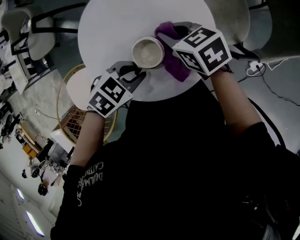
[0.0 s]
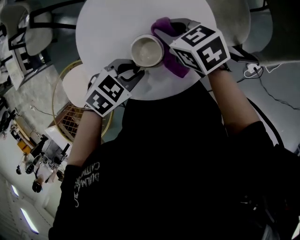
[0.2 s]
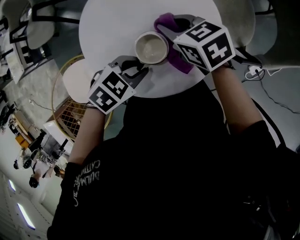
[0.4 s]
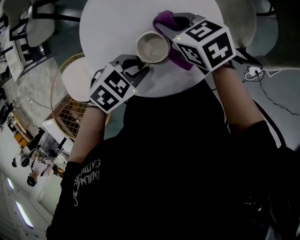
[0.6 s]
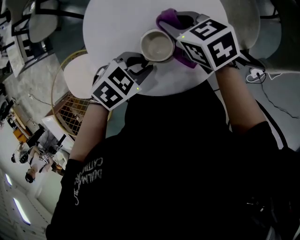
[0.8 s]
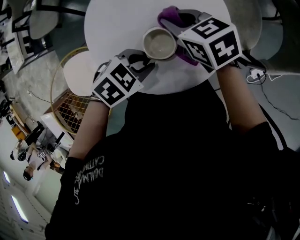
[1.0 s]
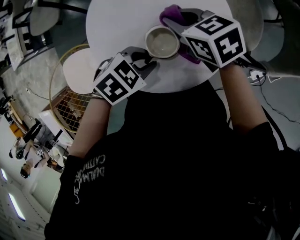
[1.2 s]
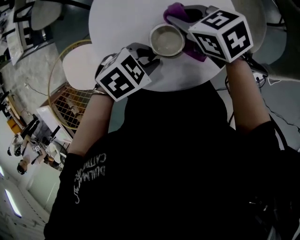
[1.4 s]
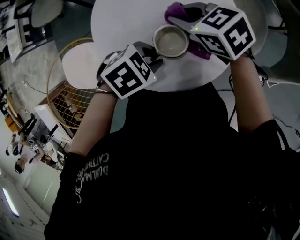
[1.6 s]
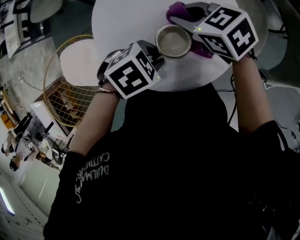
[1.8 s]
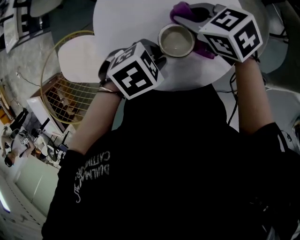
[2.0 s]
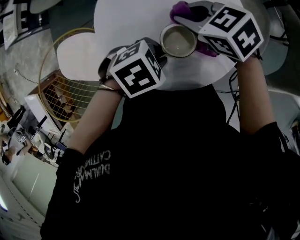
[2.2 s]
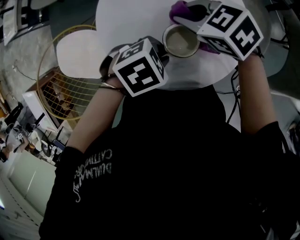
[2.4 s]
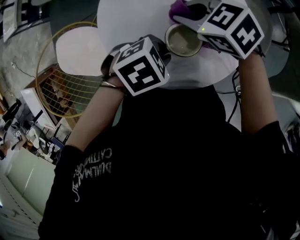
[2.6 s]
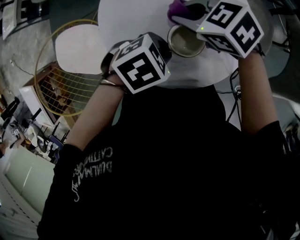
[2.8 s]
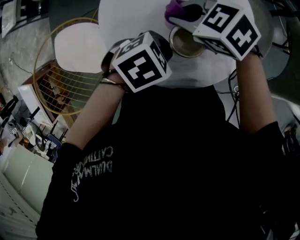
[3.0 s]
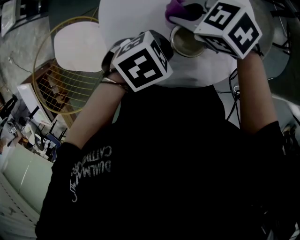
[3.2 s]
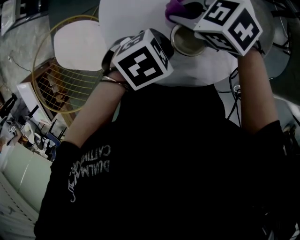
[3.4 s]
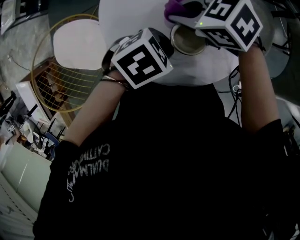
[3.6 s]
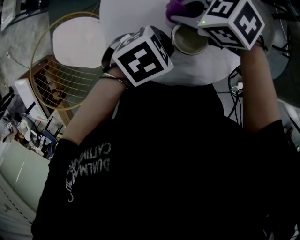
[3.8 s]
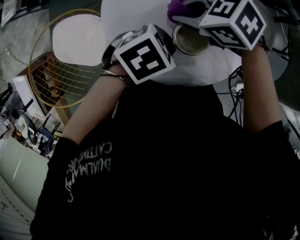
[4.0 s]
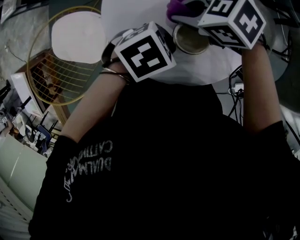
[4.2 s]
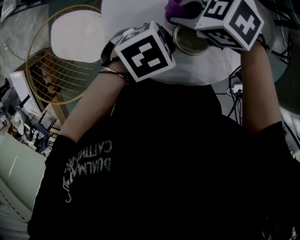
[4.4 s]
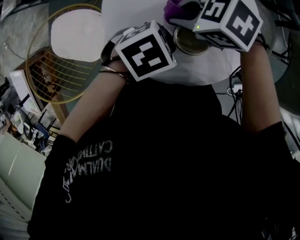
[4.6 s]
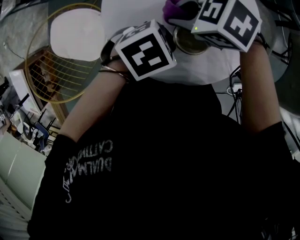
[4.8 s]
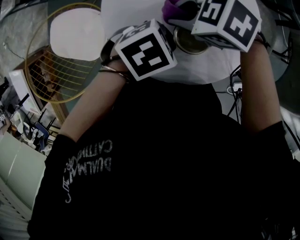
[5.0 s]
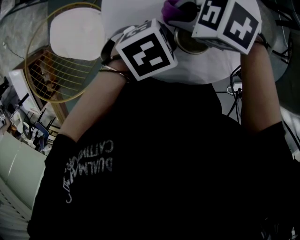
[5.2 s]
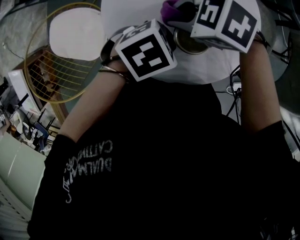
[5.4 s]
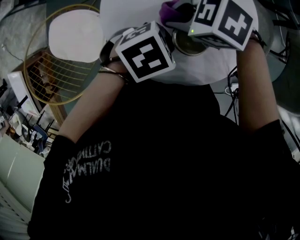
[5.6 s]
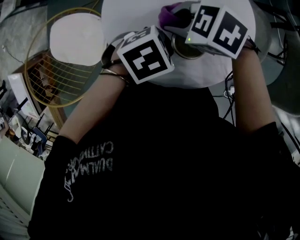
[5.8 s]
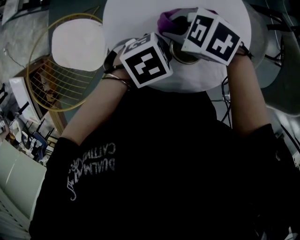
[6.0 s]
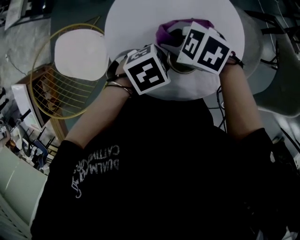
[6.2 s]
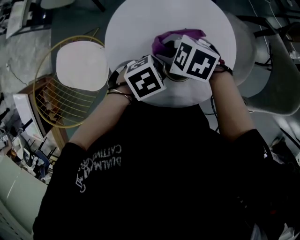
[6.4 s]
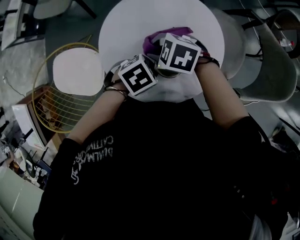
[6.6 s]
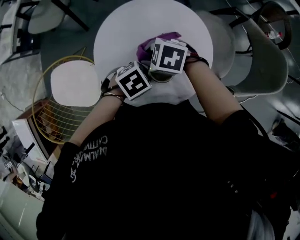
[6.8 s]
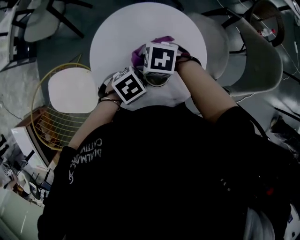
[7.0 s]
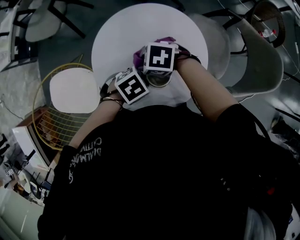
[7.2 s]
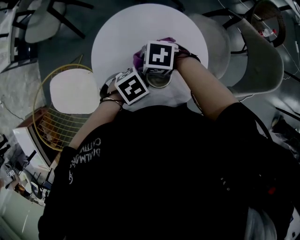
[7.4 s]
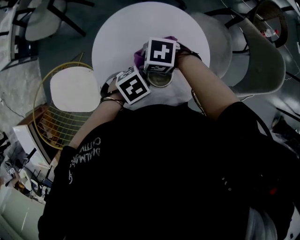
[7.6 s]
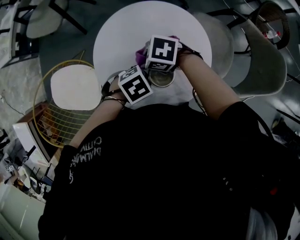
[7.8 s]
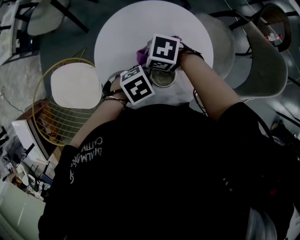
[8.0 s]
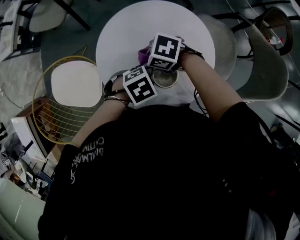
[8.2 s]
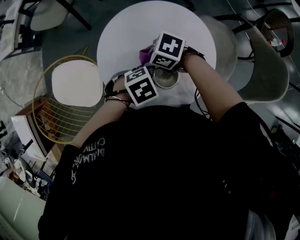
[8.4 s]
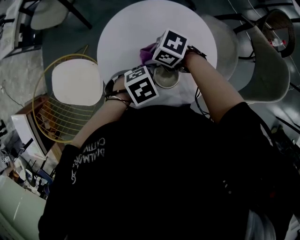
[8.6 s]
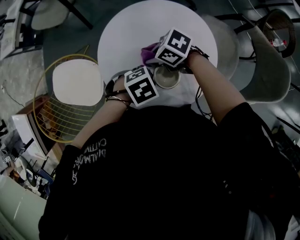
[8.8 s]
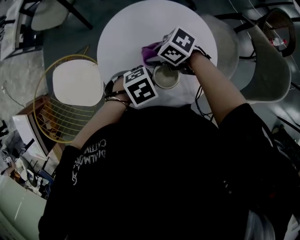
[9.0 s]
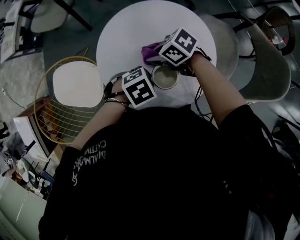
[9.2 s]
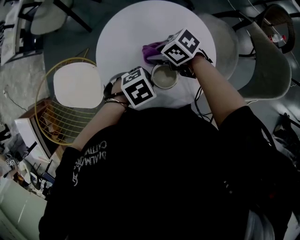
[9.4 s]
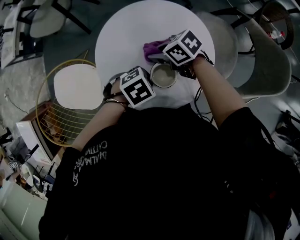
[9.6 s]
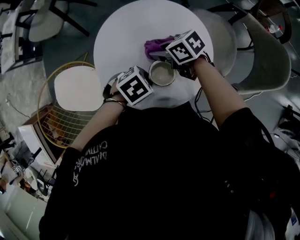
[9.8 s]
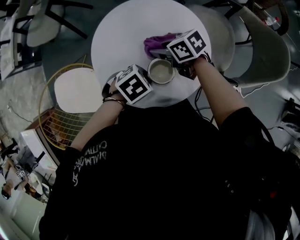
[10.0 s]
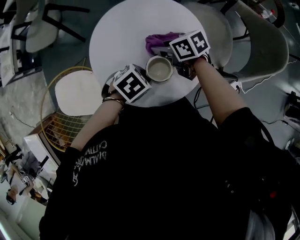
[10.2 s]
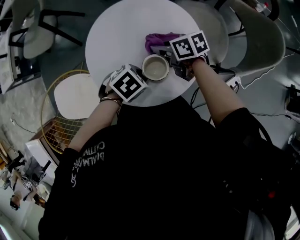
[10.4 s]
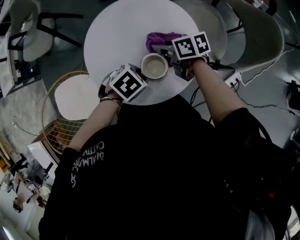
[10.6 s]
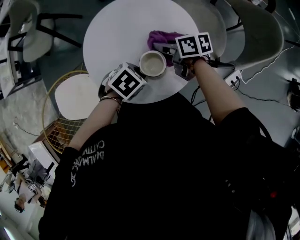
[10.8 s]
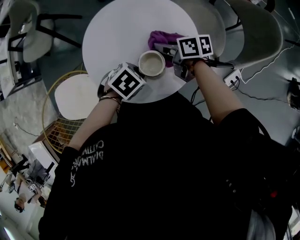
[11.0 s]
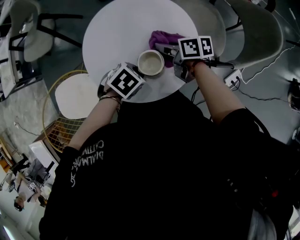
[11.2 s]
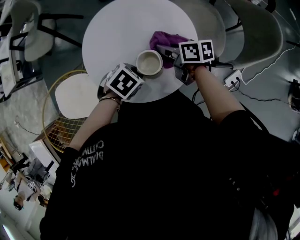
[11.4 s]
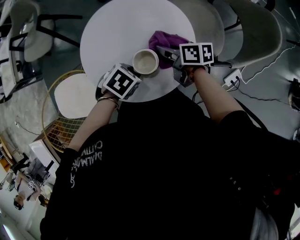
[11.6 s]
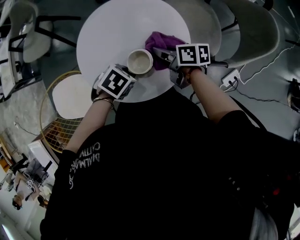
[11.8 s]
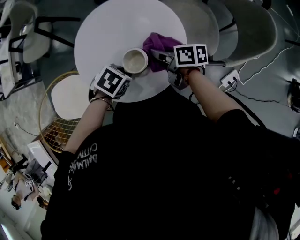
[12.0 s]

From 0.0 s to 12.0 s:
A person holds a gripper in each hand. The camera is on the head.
From 0.0 s to 1.6 s: The right gripper shifts by approximately 5 cm, and rotates some 20 degrees.
From 1.6 s to 3.0 s: The right gripper changes place by some 5 cm, and turns by some 20 degrees.
From 3.0 s to 4.4 s: The grippers make only small movements.
From 4.4 s to 7.6 s: There are only small adjustments of the grippers.
From 7.6 s to 9.0 s: The right gripper turns by roughly 20 degrees.
From 9.0 s to 10.4 s: The right gripper ends up roughly 10 cm from where it was, and rotates about 50 degrees.
From 10.4 s to 12.0 s: The right gripper moves some 10 cm, and changes its angle by roughly 20 degrees.

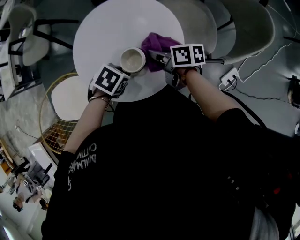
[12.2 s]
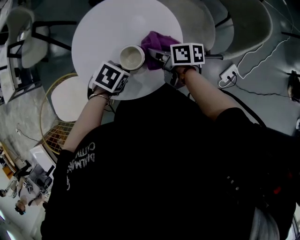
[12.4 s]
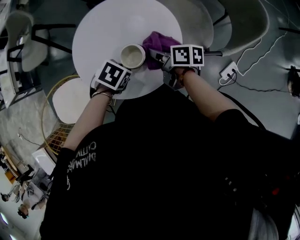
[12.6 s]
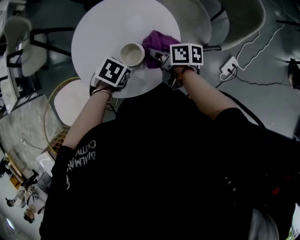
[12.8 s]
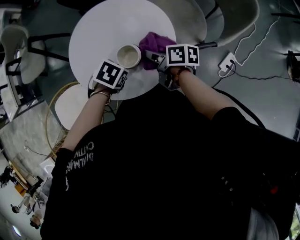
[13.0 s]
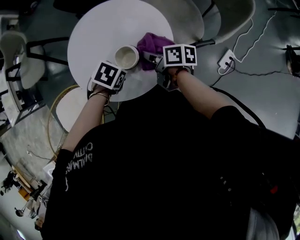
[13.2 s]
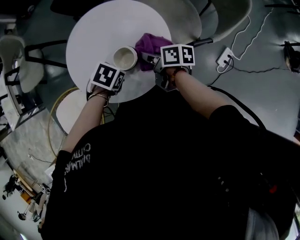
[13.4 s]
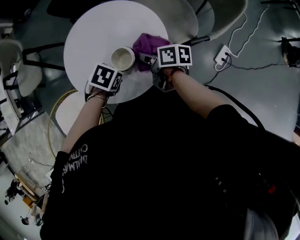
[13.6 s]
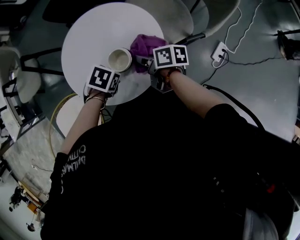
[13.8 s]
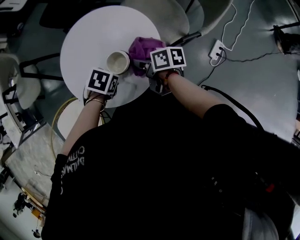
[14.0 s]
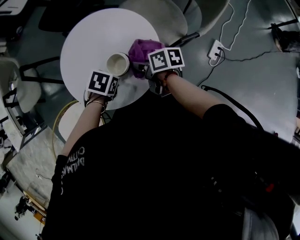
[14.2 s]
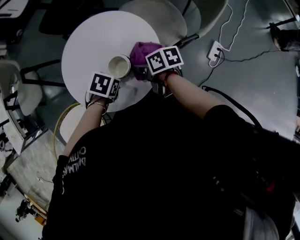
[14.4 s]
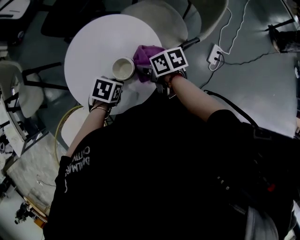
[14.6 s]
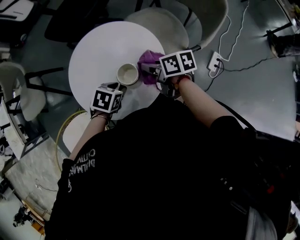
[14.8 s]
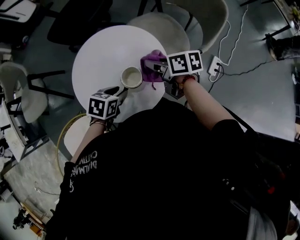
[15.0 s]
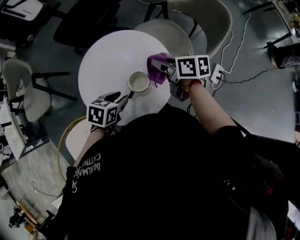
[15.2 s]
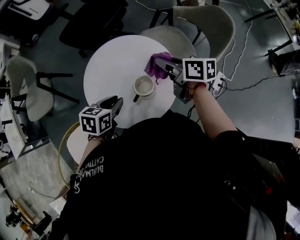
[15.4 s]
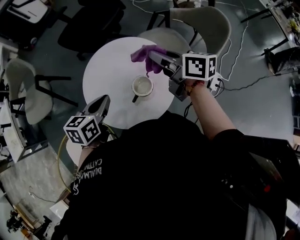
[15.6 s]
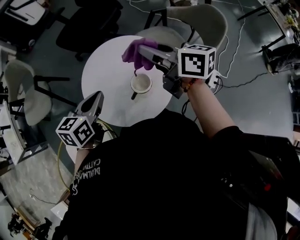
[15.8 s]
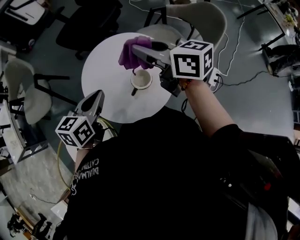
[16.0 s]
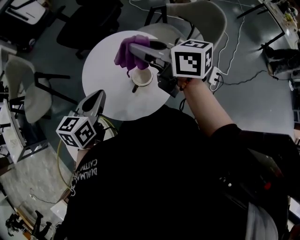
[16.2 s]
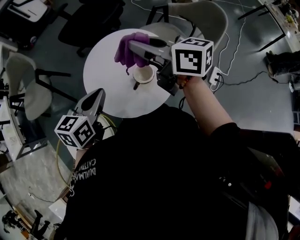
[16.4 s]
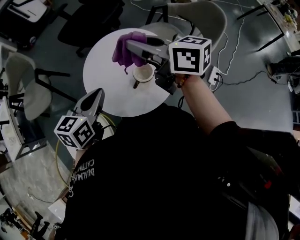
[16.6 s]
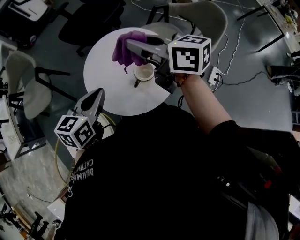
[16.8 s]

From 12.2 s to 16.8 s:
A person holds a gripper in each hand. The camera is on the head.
From 12.2 s to 13.8 s: The right gripper changes place by approximately 5 cm.
From 13.8 s to 15.2 s: The left gripper is displaced upward by about 5 cm, turns by approximately 20 degrees, and opens up; the right gripper is displaced upward by about 10 cm.
From 15.2 s to 16.8 s: Both grippers travel together upward and to the left, some 20 cm. The right gripper changes its angle by about 30 degrees. The left gripper turns by approximately 30 degrees, and closes.

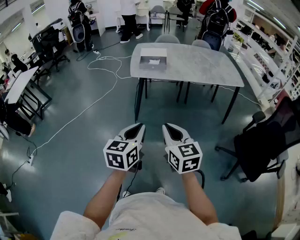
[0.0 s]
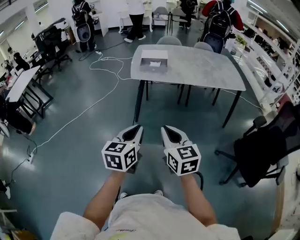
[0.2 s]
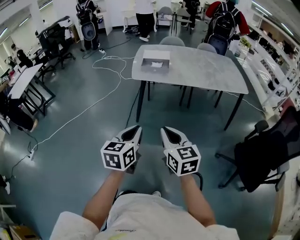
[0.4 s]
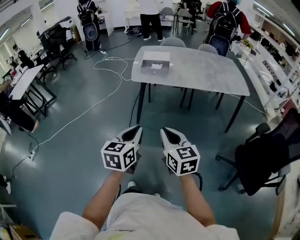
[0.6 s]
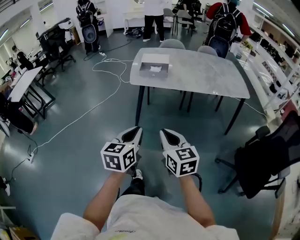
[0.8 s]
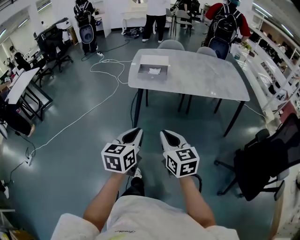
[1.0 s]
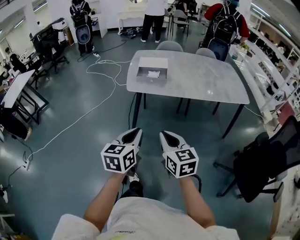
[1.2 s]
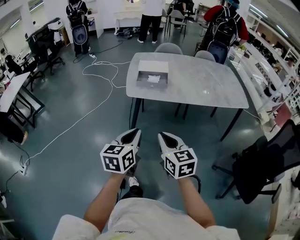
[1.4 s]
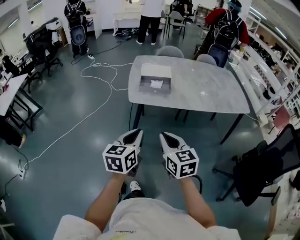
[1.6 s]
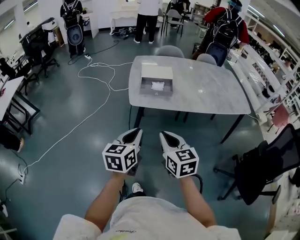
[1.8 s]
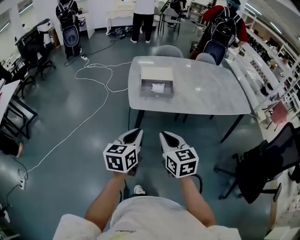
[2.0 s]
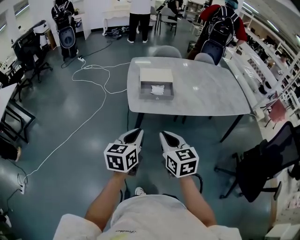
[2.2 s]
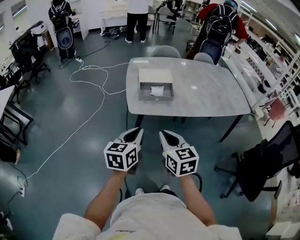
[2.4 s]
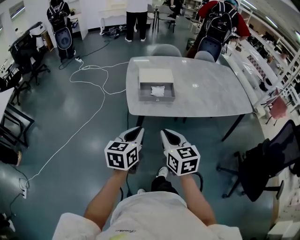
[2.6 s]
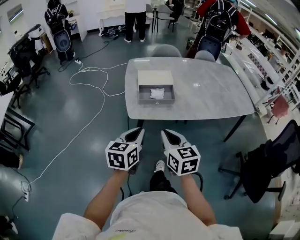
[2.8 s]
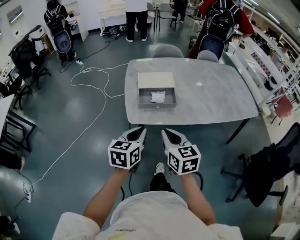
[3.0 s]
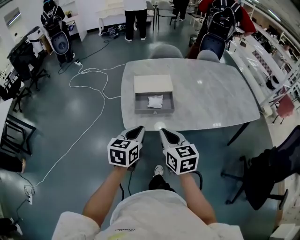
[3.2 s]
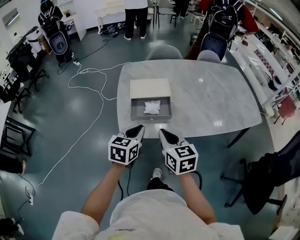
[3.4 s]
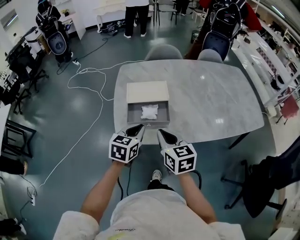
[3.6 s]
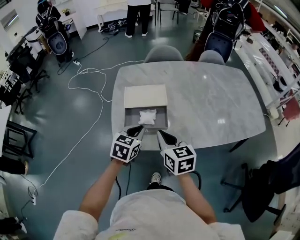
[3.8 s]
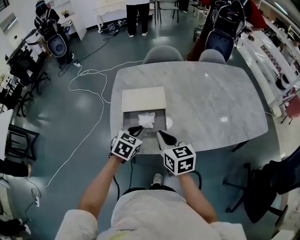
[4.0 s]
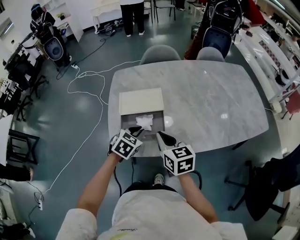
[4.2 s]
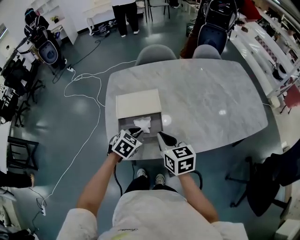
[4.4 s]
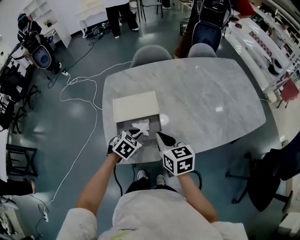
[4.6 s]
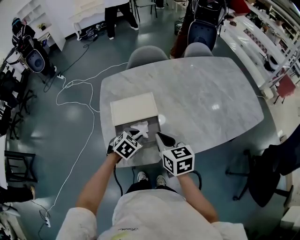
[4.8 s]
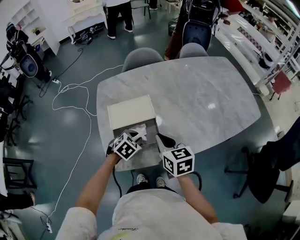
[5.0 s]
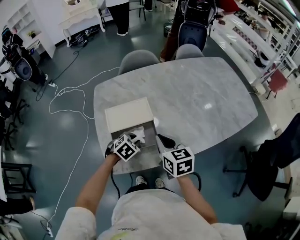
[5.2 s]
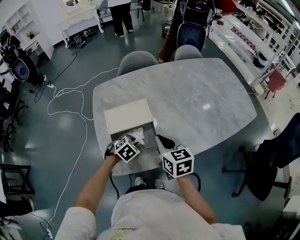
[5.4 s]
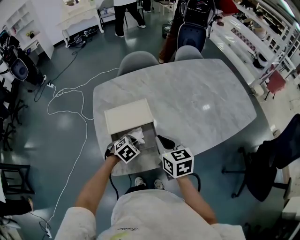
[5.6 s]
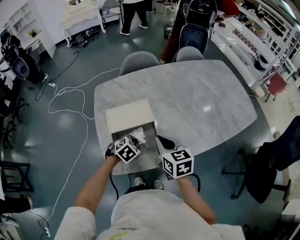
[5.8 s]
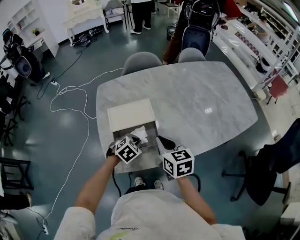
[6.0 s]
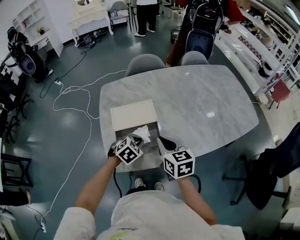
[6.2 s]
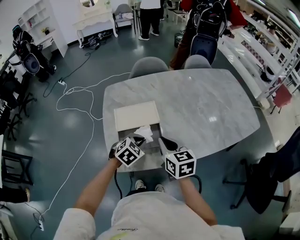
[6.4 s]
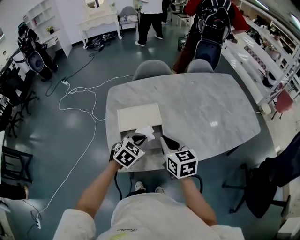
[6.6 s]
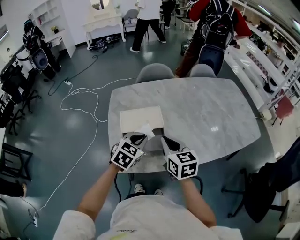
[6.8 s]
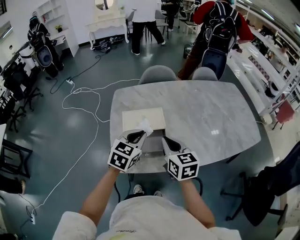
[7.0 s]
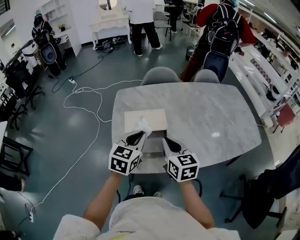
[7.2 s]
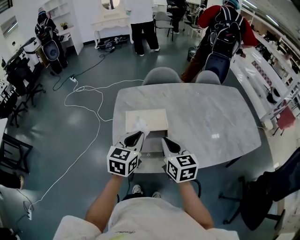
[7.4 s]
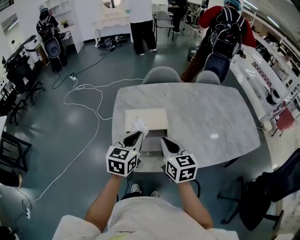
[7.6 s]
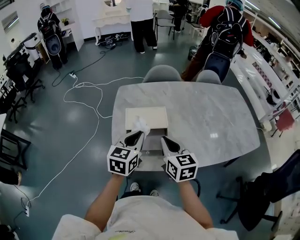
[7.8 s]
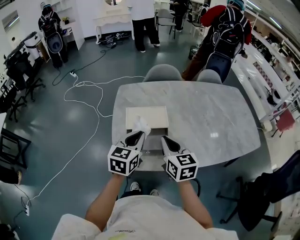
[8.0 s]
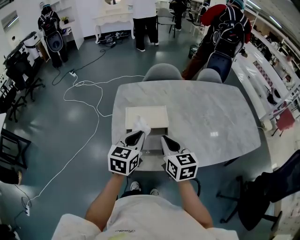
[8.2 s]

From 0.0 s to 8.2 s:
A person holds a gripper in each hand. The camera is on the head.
From 0.0 s to 1.6 s: Both grippers move forward, approximately 25 cm.
From 1.6 s to 3.2 s: Both grippers move forward, some 25 cm.
From 3.2 s to 5.0 s: The right gripper heads forward, covering some 20 cm. Meanwhile the left gripper travels forward and downward by approximately 25 cm, and tips its fingers downward by about 30 degrees.
From 5.0 s to 6.6 s: The left gripper is displaced upward by about 10 cm.
From 6.6 s to 8.2 s: The left gripper travels upward and to the left by roughly 10 cm, and swivels about 40 degrees.
